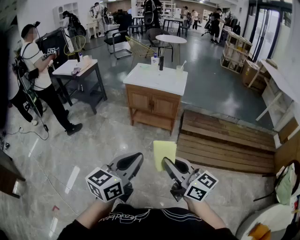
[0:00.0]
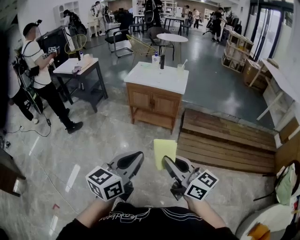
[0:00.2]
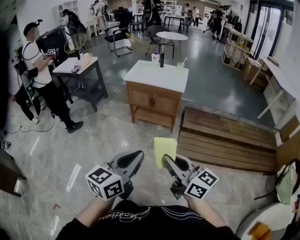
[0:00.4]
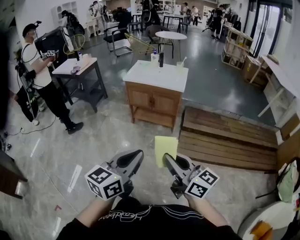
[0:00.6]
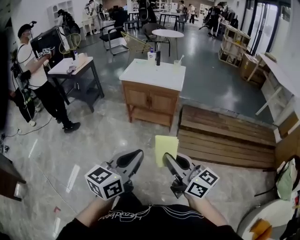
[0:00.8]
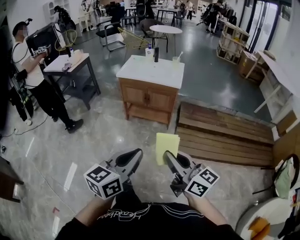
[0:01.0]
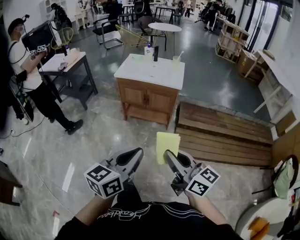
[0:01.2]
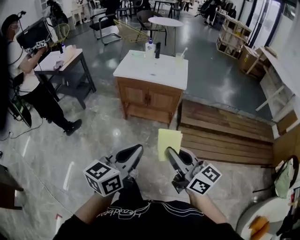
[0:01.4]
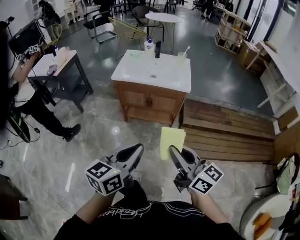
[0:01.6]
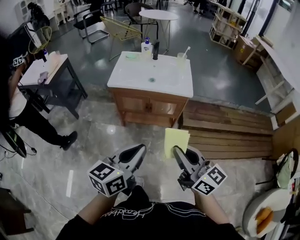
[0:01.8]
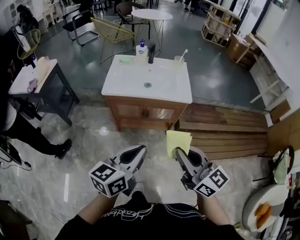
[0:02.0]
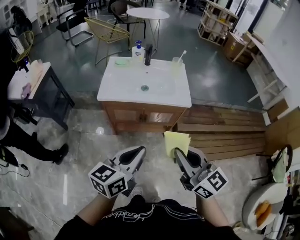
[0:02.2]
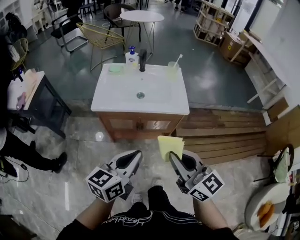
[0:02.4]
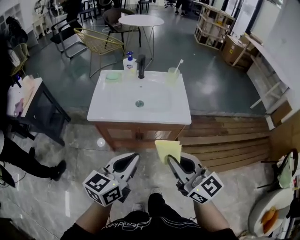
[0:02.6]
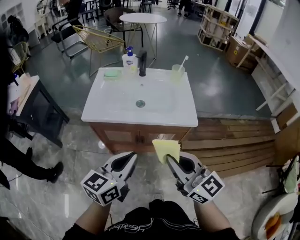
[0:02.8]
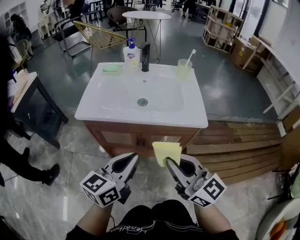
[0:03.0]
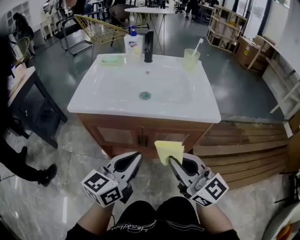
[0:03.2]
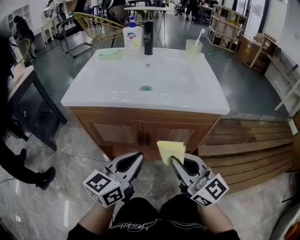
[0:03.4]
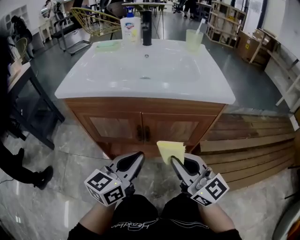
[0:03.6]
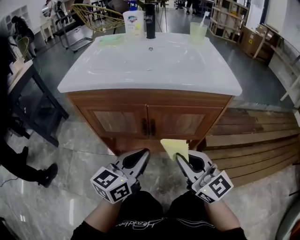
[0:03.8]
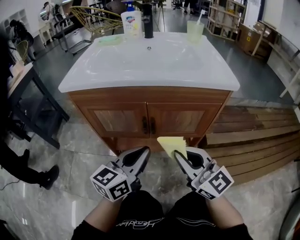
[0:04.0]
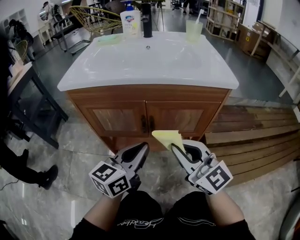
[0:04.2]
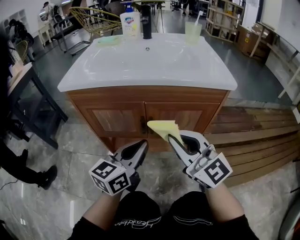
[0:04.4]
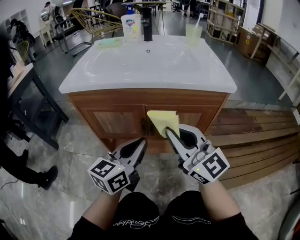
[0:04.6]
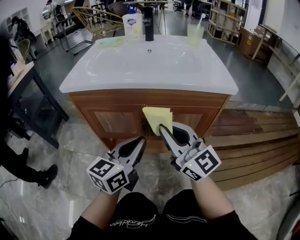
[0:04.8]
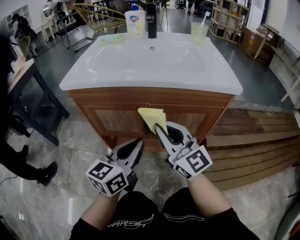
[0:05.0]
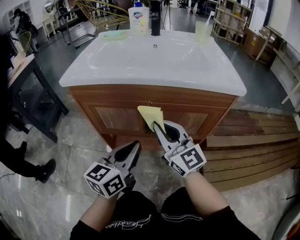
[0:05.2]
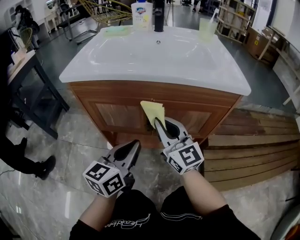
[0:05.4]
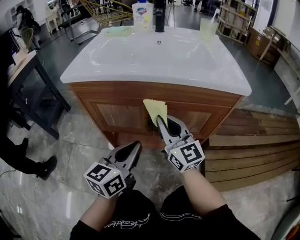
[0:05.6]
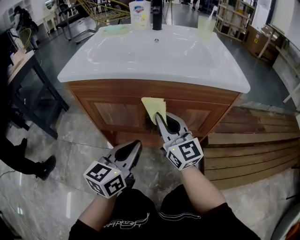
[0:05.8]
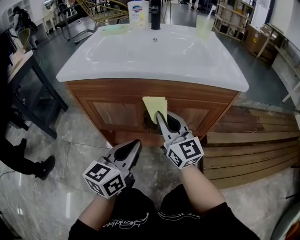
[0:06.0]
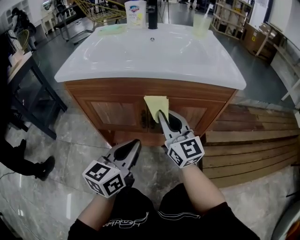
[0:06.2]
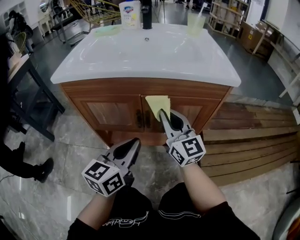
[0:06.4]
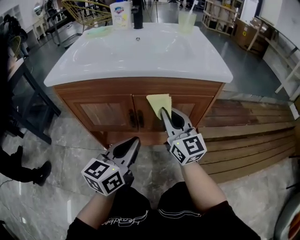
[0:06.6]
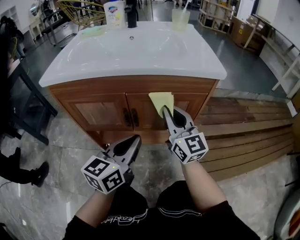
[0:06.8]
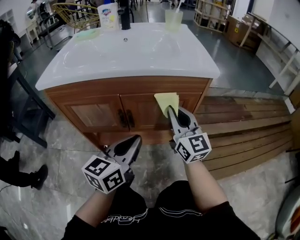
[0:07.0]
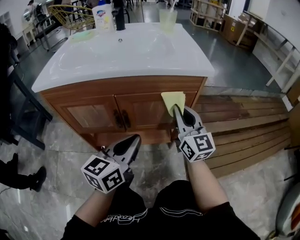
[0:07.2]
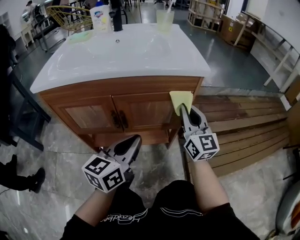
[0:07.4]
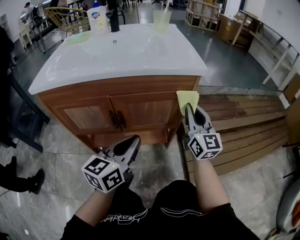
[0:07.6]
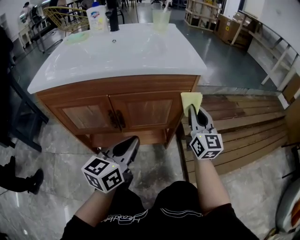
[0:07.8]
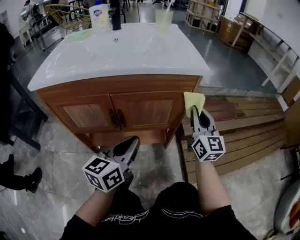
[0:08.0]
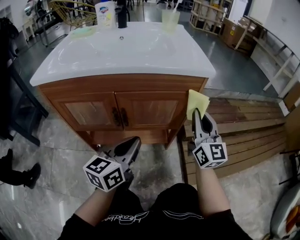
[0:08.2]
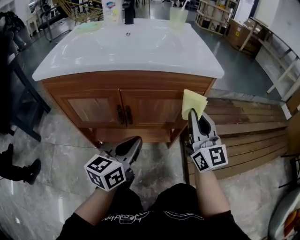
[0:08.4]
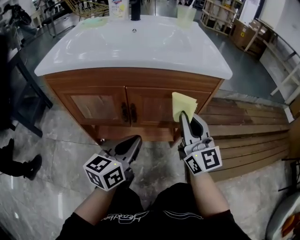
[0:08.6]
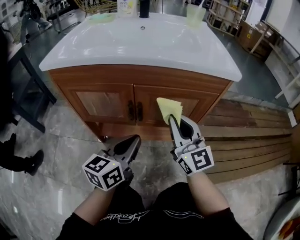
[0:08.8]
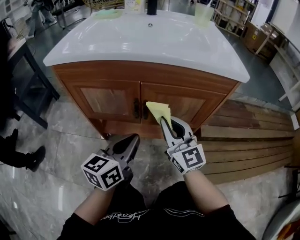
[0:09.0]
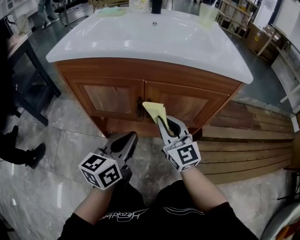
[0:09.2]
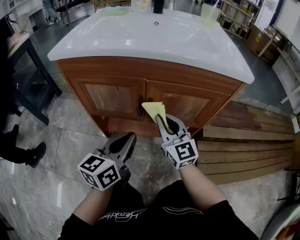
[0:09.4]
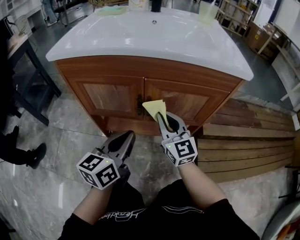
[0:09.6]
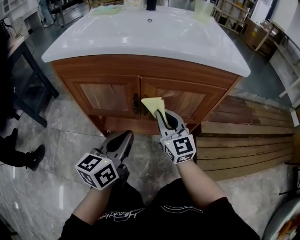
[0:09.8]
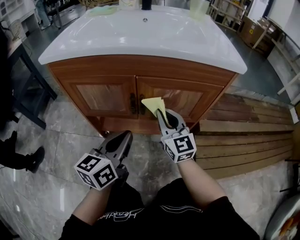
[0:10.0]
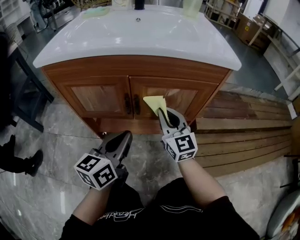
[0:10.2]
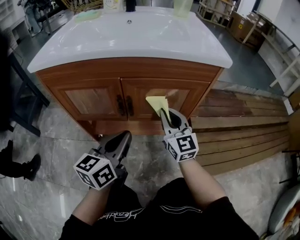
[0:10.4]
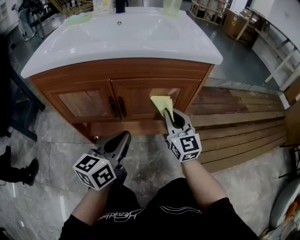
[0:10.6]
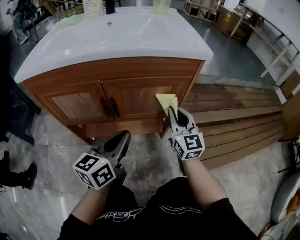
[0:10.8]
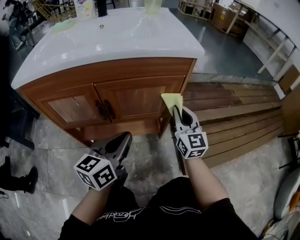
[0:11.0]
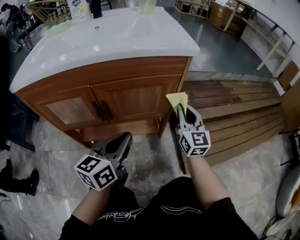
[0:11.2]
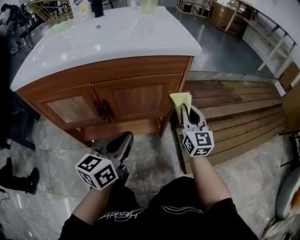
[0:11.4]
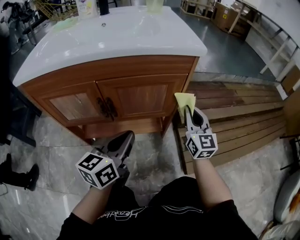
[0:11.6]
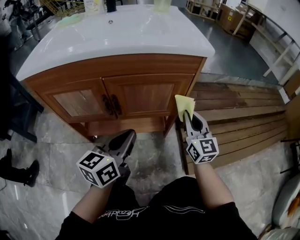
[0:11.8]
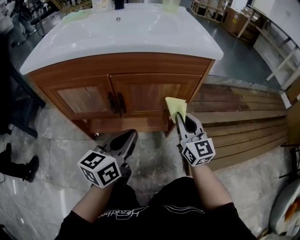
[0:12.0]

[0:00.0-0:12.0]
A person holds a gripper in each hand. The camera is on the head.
0:00.0 to 0:01.6: Both grippers travel together forward, approximately 25 cm.
0:01.6 to 0:03.0: Both grippers move forward and downward, approximately 40 cm.
0:03.0 to 0:04.4: The two grippers go some 20 cm downward. The right gripper swivels some 20 degrees.
0:04.4 to 0:06.0: The right gripper is displaced forward and downward by approximately 15 cm.
0:06.0 to 0:07.6: The right gripper heads to the right, covering roughly 25 cm, and rotates some 30 degrees; the left gripper shifts roughly 10 cm to the right.
0:07.6 to 0:09.0: The right gripper is displaced to the left by about 20 cm, and turns by approximately 30 degrees. Meanwhile the left gripper heads to the left and downward, covering some 10 cm.
0:09.0 to 0:10.4: The right gripper is displaced to the right by roughly 5 cm.
0:10.4 to 0:12.0: The right gripper moves to the right, some 10 cm.

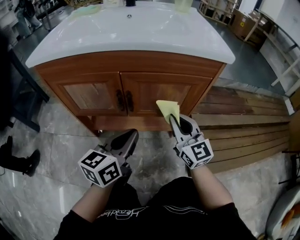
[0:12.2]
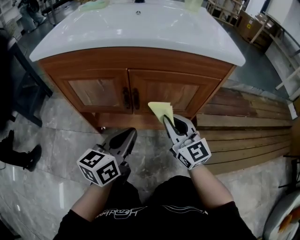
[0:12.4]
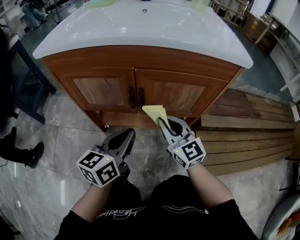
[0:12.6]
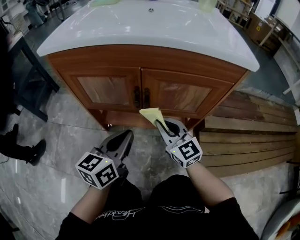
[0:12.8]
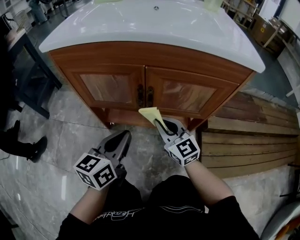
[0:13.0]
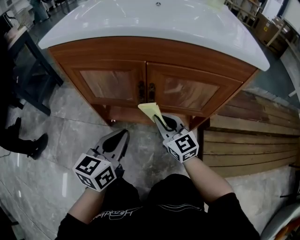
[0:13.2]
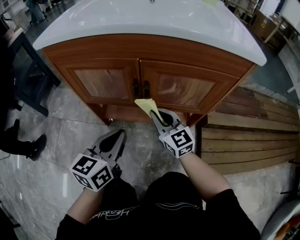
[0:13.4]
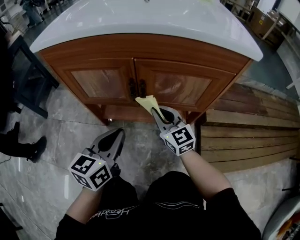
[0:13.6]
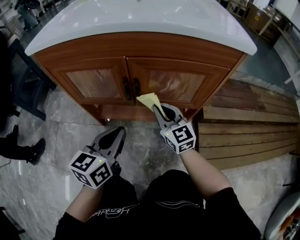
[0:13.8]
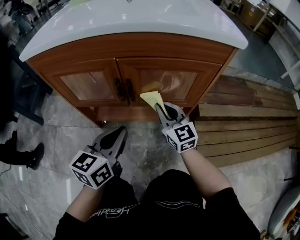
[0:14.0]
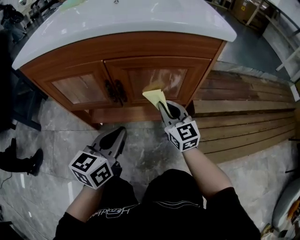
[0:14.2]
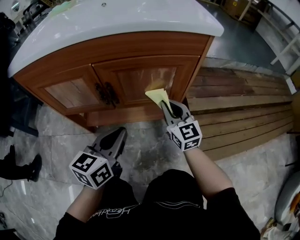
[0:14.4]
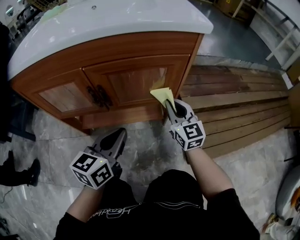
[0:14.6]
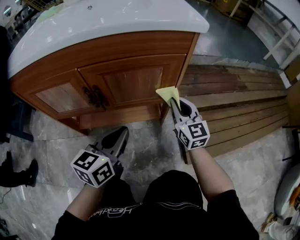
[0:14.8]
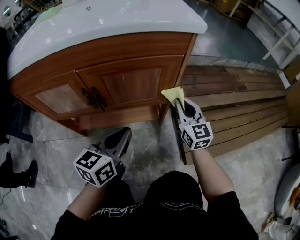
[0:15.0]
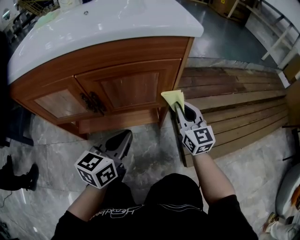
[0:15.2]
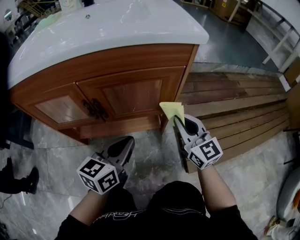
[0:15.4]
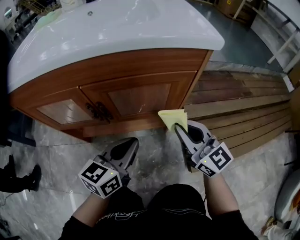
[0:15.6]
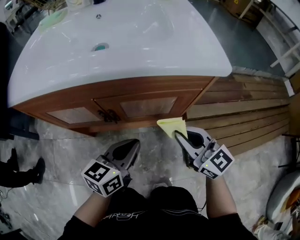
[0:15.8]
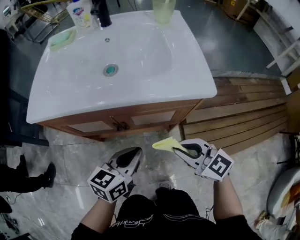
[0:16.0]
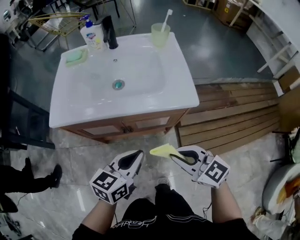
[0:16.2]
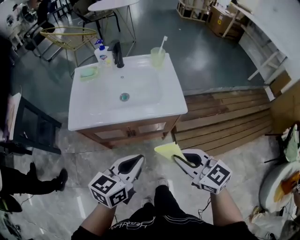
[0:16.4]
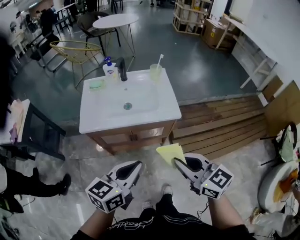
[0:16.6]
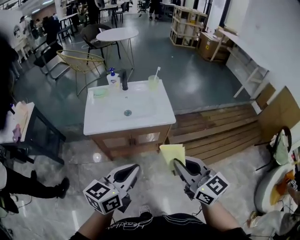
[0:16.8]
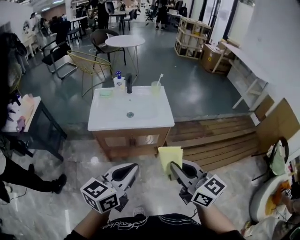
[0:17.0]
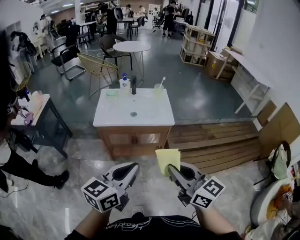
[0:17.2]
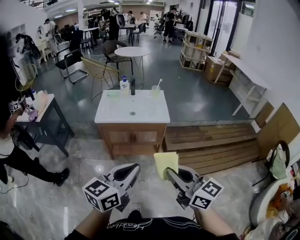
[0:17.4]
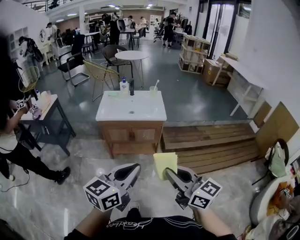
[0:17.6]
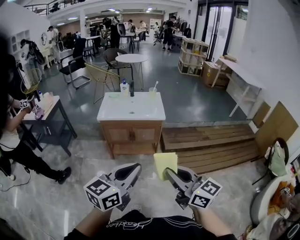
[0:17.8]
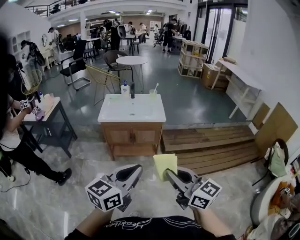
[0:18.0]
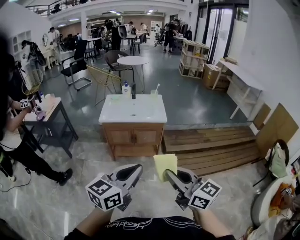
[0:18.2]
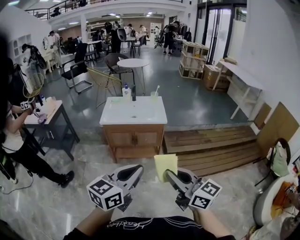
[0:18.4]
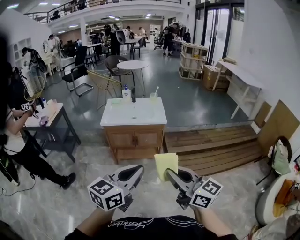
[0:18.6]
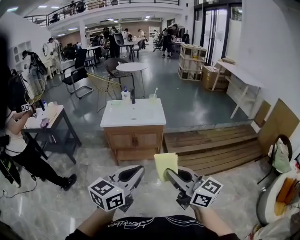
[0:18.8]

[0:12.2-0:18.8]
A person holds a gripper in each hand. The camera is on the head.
0:12.2 to 0:13.8: The left gripper is displaced to the left by approximately 5 cm. Meanwhile the right gripper heads to the left and downward, covering approximately 10 cm.
0:13.8 to 0:15.4: The grippers both shift to the right by roughly 15 cm.
0:15.4 to 0:17.2: Both grippers travel together upward and backward, about 70 cm.
0:17.2 to 0:18.8: The two grippers go approximately 20 cm backward.

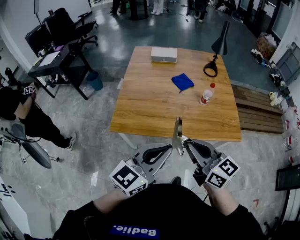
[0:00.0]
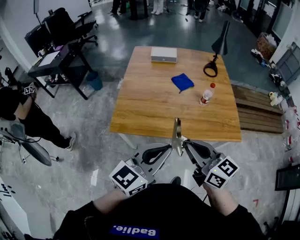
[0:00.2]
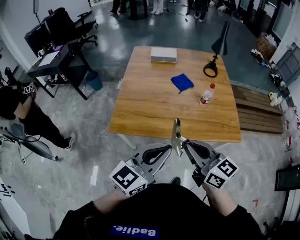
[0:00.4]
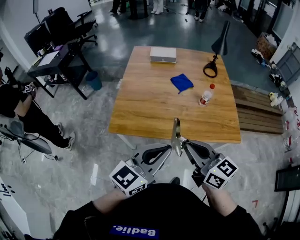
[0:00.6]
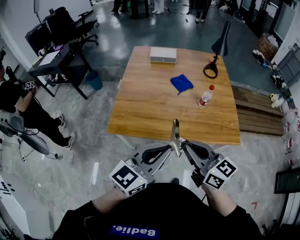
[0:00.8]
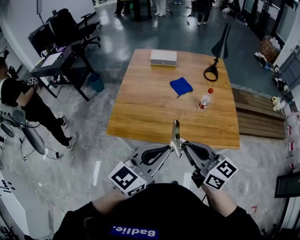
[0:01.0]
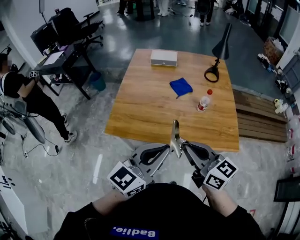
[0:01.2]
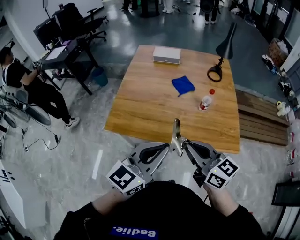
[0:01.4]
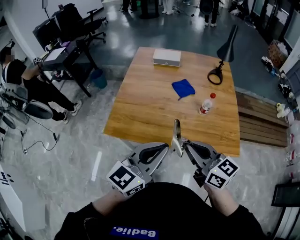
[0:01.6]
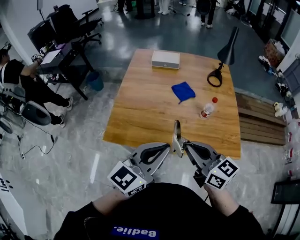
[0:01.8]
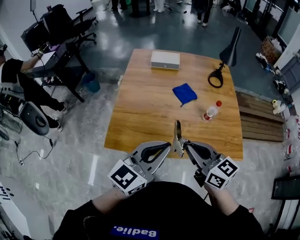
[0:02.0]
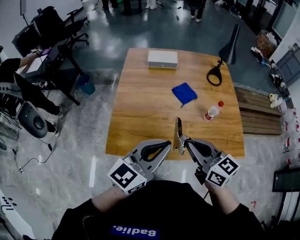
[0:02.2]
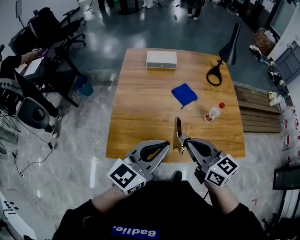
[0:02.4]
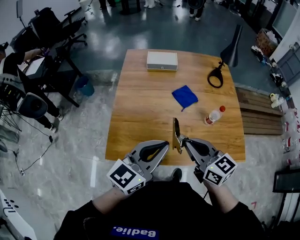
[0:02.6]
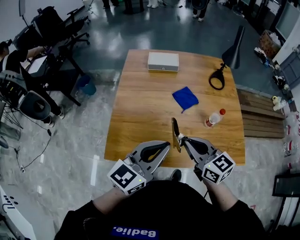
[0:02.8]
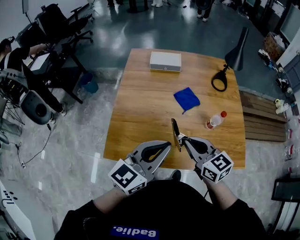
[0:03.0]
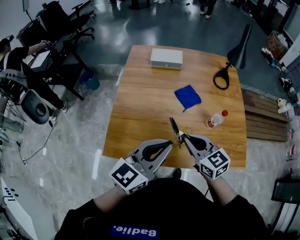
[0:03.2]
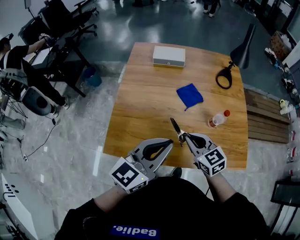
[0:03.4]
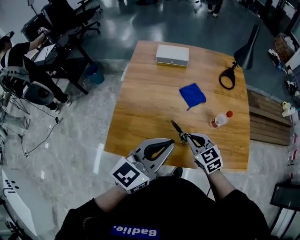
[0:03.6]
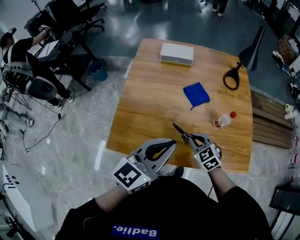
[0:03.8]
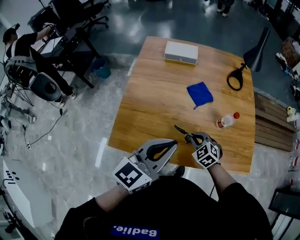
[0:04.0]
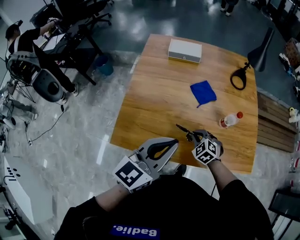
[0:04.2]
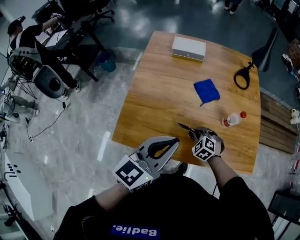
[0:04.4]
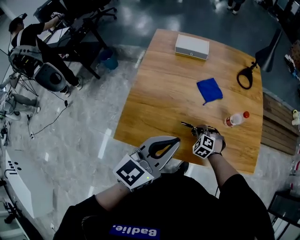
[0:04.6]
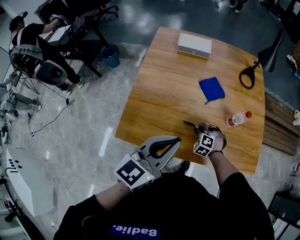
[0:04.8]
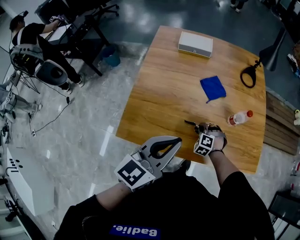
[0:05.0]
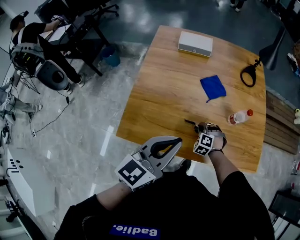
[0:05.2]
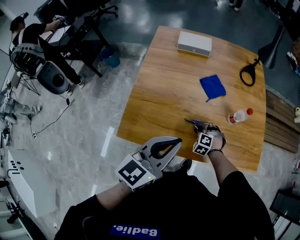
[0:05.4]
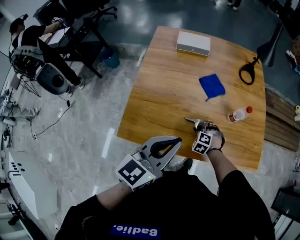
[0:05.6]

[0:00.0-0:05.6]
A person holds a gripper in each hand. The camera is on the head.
0:00.0 to 0:01.4: Both grippers move to the right, some 5 cm.
0:01.4 to 0:02.8: The two grippers go some 20 cm forward and to the left.
0:02.8 to 0:04.2: The right gripper shifts approximately 25 cm downward, and angles its fingers downward, by roughly 40 degrees.
0:04.2 to 0:05.6: The right gripper shifts roughly 10 cm downward, and changes its angle by about 20 degrees.
